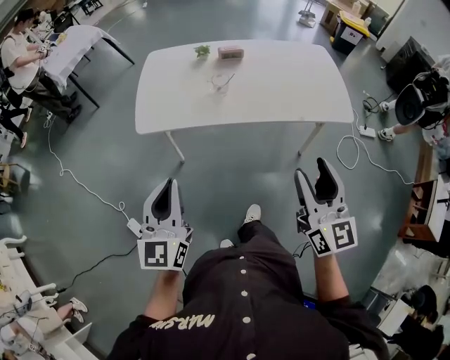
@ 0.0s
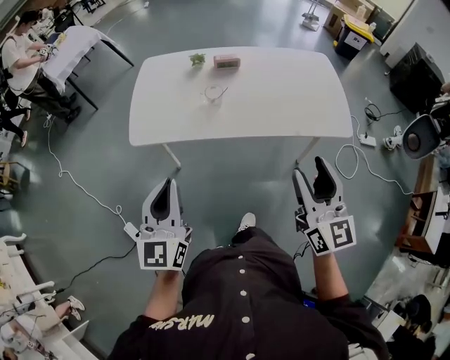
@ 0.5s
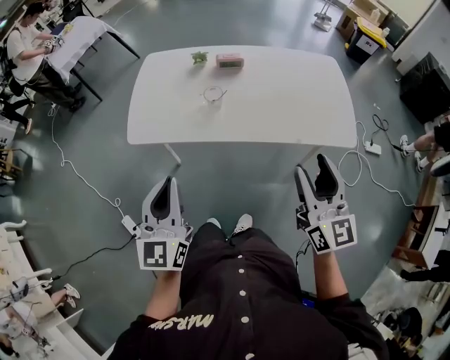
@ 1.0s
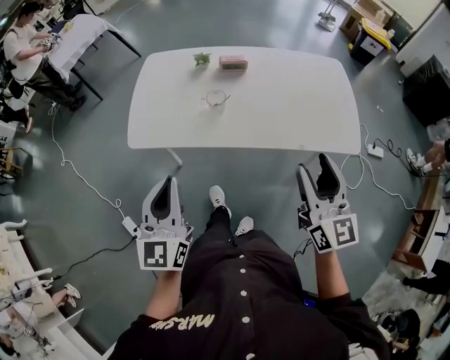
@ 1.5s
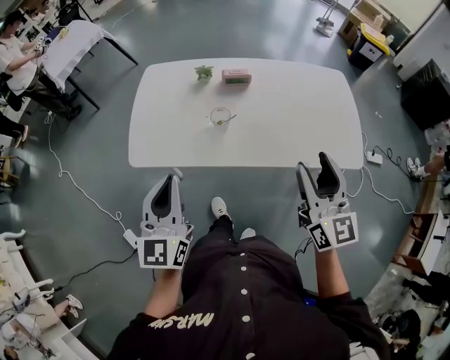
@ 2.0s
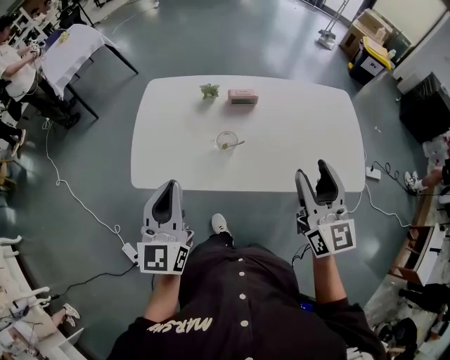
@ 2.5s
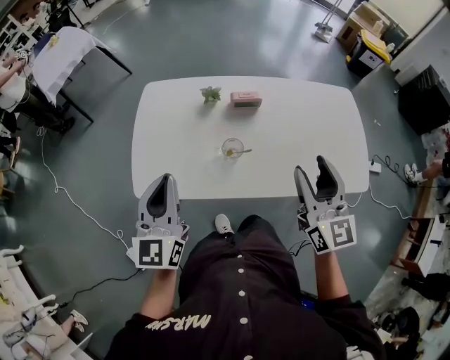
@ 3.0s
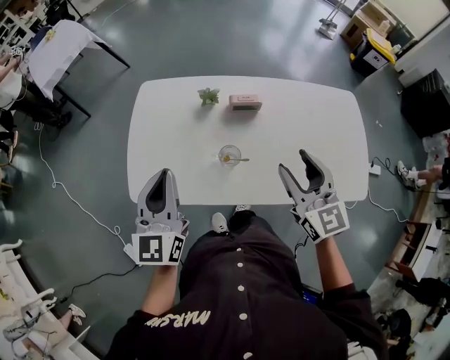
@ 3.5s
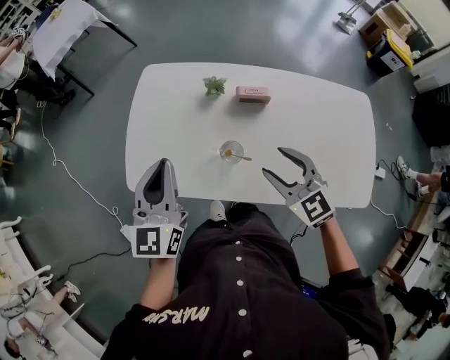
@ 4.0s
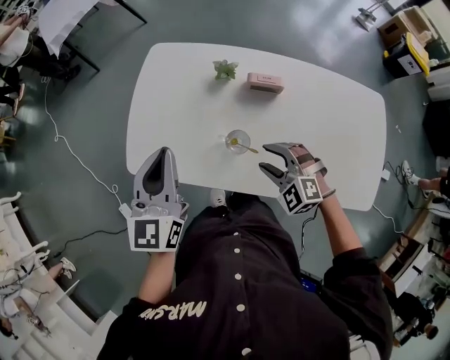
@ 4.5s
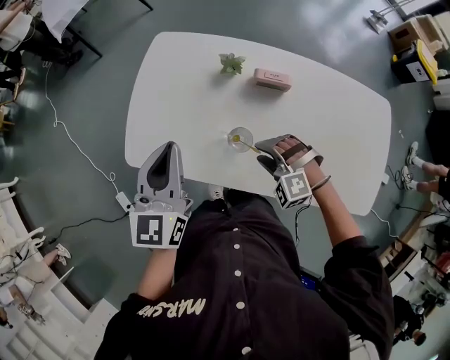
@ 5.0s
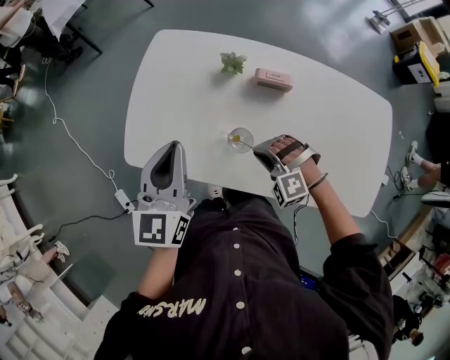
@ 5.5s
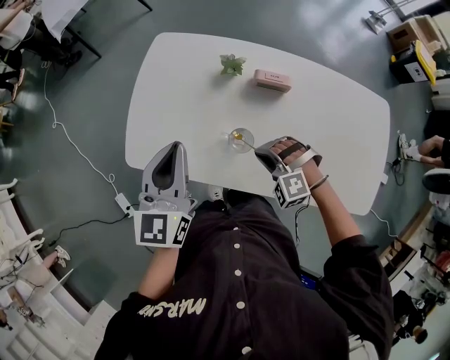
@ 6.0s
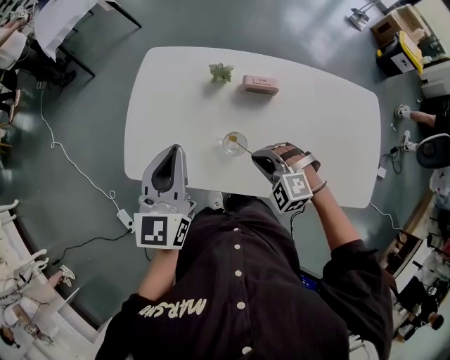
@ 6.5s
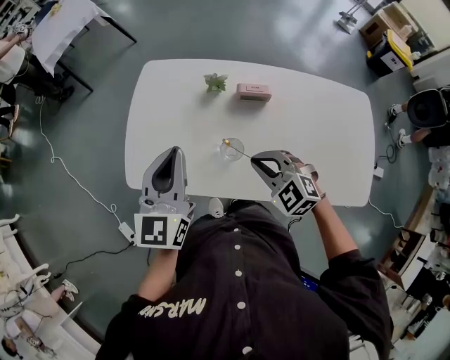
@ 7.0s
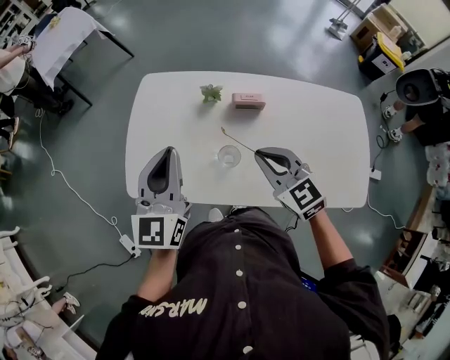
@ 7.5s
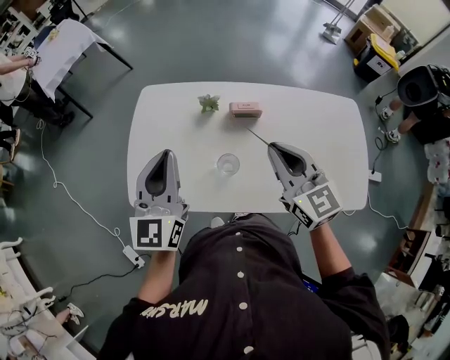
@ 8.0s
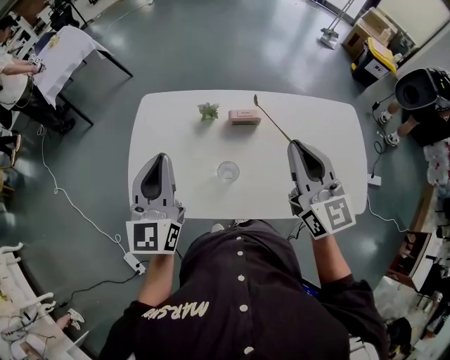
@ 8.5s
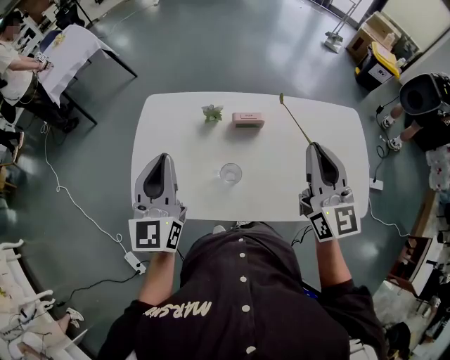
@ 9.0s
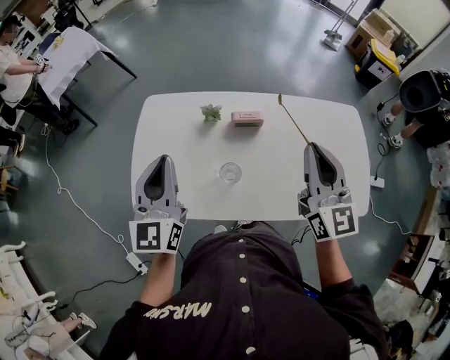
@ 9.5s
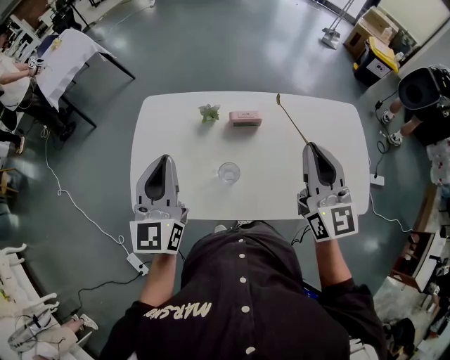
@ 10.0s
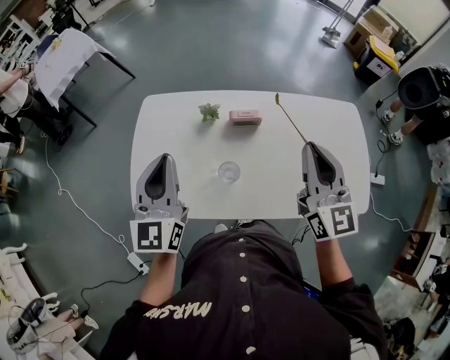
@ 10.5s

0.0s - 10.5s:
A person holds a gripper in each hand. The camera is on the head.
0.0s - 2.0s: Both grippers travel together forward, roughly 20 cm.
2.0s - 4.0s: The left gripper moves forward, approximately 25 cm. The right gripper shifts approximately 30 cm forward, downward and to the left, and changes its angle by about 40 degrees.
4.0s - 6.5s: The right gripper is displaced downward by roughly 10 cm, turns by some 50 degrees, and closes up.
6.5s - 8.5s: The right gripper shifts about 30 cm upward, and tilts its fingers approximately 50 degrees upward. Meanwhile the left gripper moves upward, about 5 cm.
8.5s - 10.5s: The grippers make only small movements.

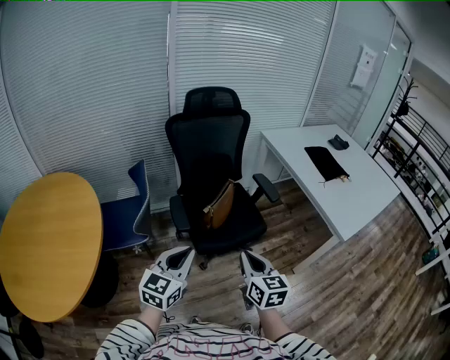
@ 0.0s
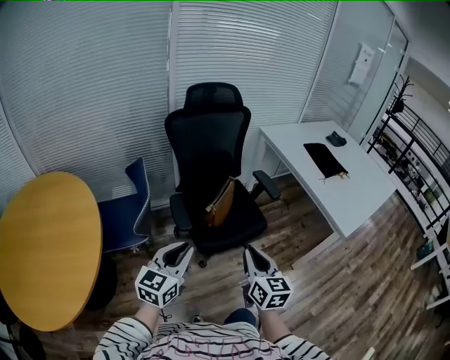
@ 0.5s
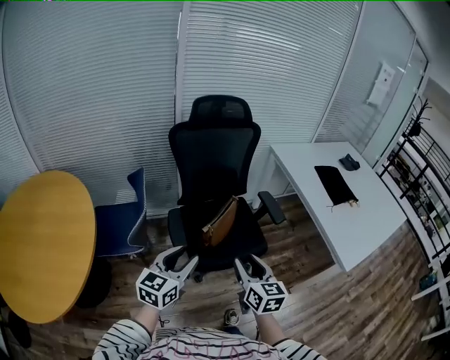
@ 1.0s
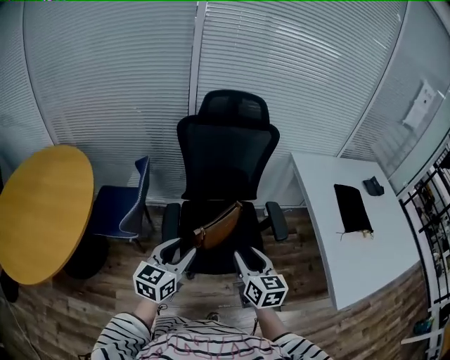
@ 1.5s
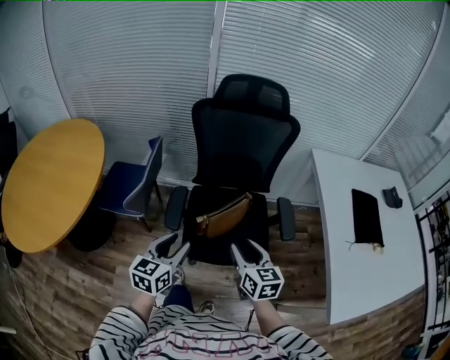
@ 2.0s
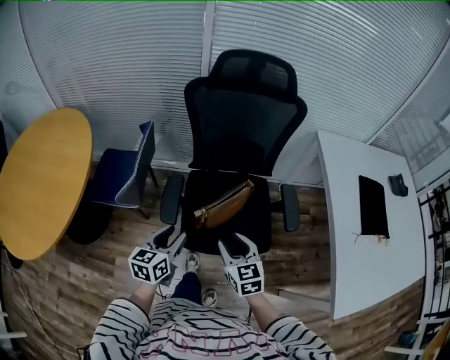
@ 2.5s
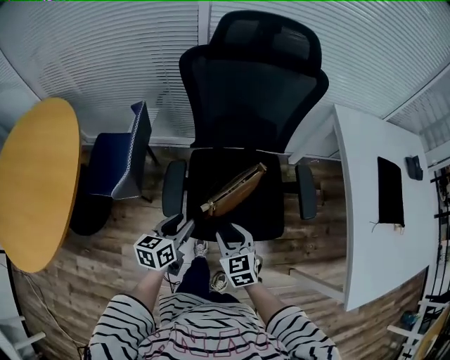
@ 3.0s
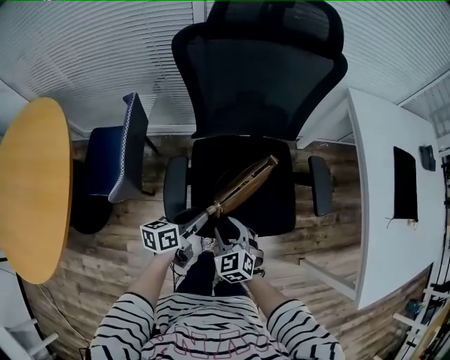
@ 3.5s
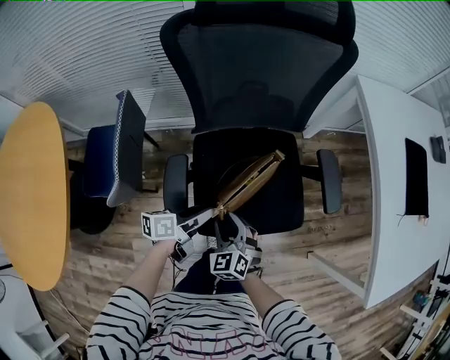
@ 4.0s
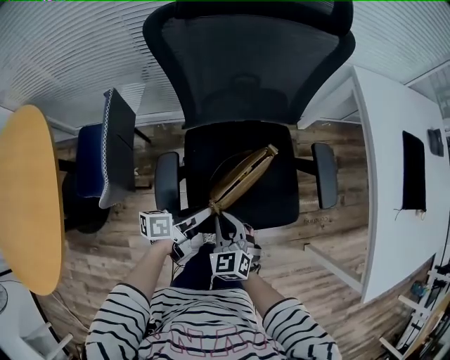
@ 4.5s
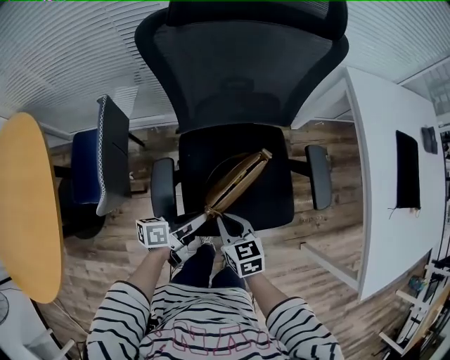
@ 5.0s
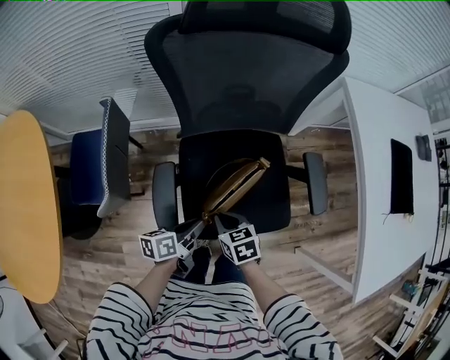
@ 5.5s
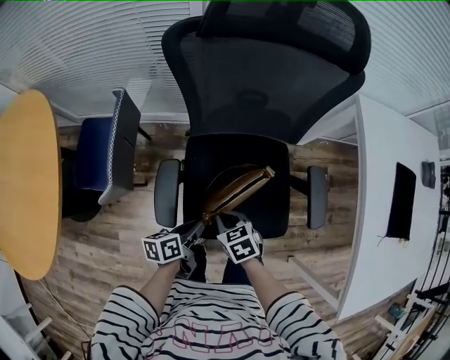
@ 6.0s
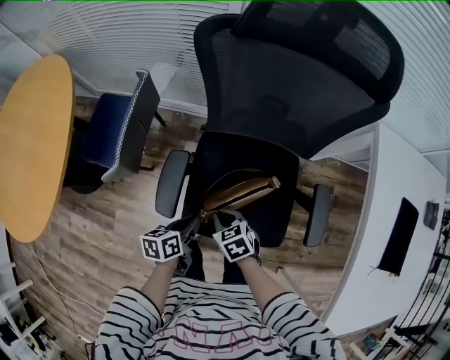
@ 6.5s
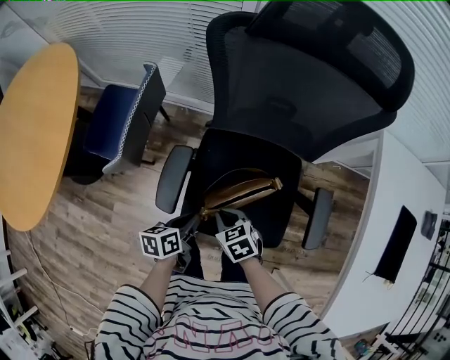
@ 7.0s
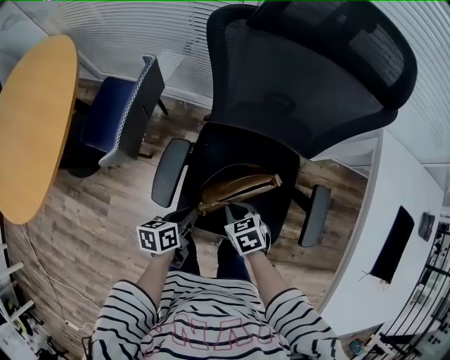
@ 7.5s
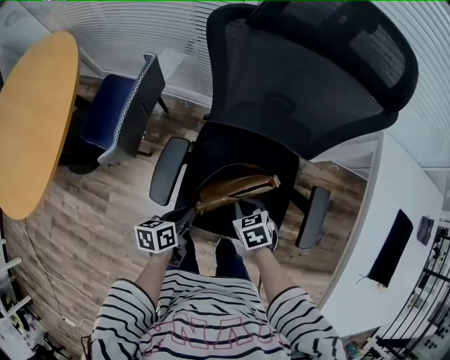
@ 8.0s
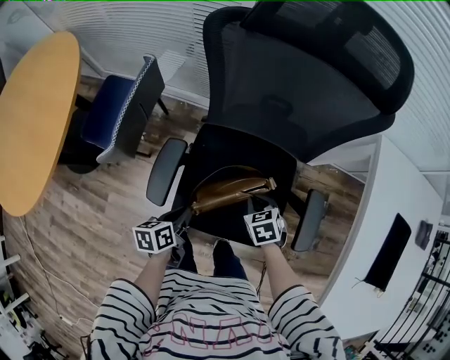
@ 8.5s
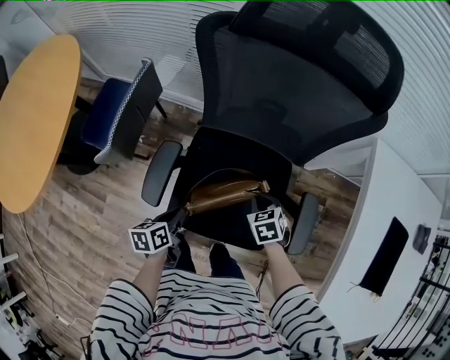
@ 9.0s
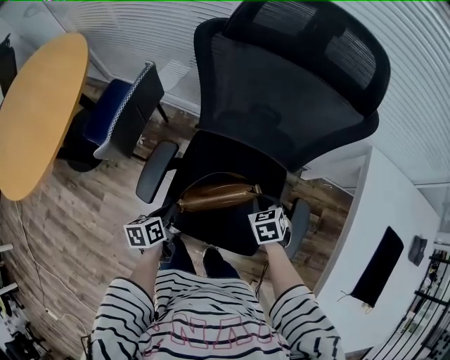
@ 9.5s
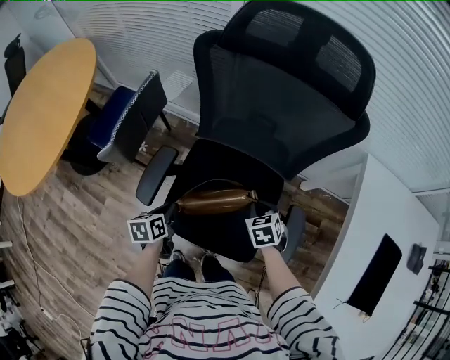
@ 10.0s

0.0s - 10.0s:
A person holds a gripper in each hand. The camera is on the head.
0.0s - 2.0s: The right gripper changes place by about 25 cm, swivels roughly 30 degrees, and opens up. Meanwhile the left gripper moves some 20 cm, rotates about 30 degrees, and opens.
2.0s - 4.0s: The right gripper heads downward, to the left and forward, covering roughly 30 cm, and turns by about 40 degrees. The left gripper heads downward and forward, covering some 30 cm, and swivels some 50 degrees.
4.0s - 6.0s: The left gripper closes up; the right gripper shifts by some 5 cm, changes its angle by approximately 40 degrees, and closes.
6.0s - 8.0s: The right gripper goes some 10 cm to the right.
8.0s - 10.0s: The right gripper moves to the right and forward, roughly 15 cm.

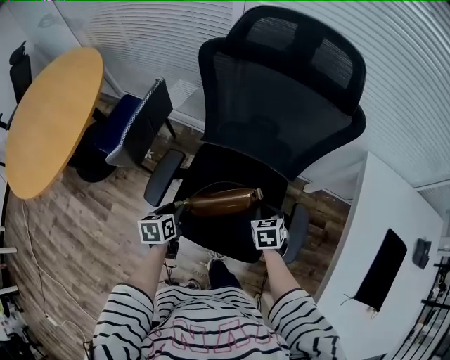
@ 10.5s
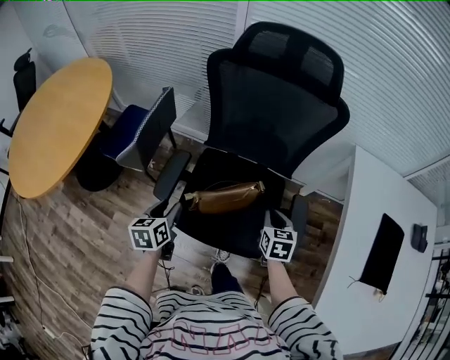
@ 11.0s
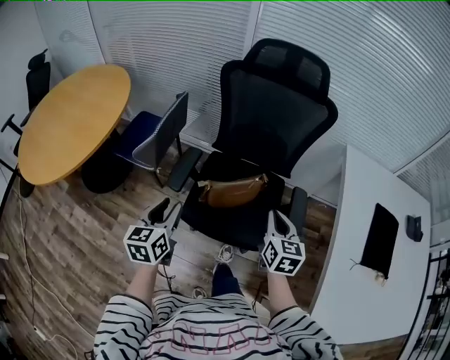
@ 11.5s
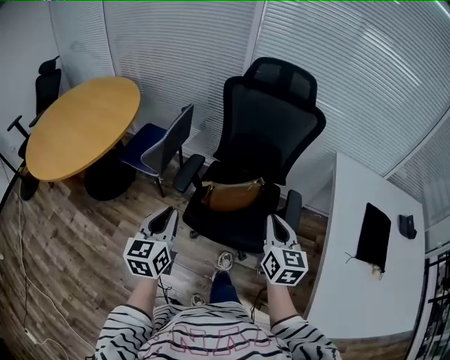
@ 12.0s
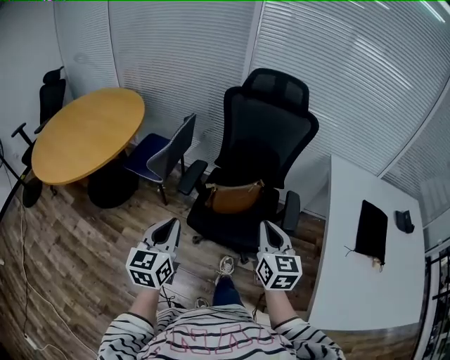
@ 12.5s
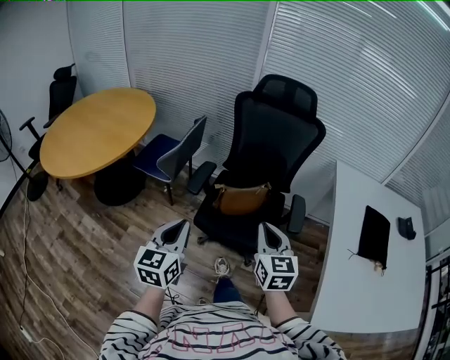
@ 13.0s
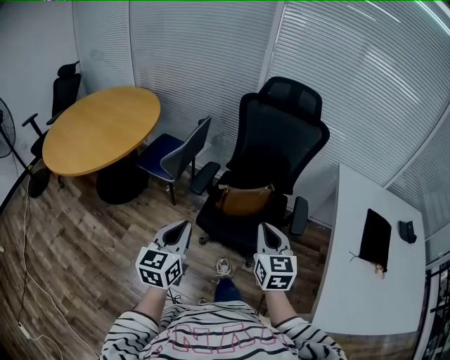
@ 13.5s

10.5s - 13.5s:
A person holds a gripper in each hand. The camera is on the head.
10.5s - 12.0s: Both grippers move upward and backward, roughly 40 cm. The right gripper tips its fingers upward by some 40 degrees, while the left gripper angles its fingers upward, by approximately 40 degrees, and closes up.
12.0s - 13.5s: The left gripper heads backward, covering some 10 cm. The right gripper shifts roughly 10 cm backward and to the left.

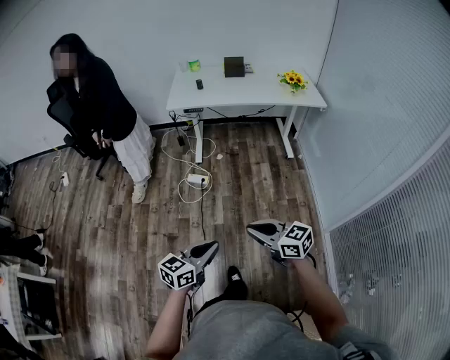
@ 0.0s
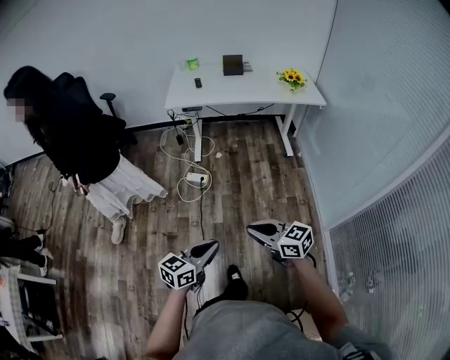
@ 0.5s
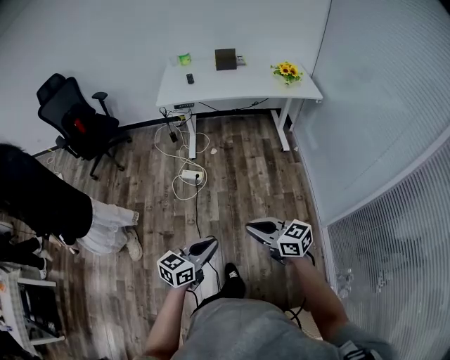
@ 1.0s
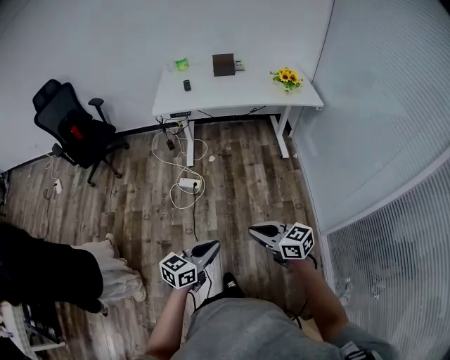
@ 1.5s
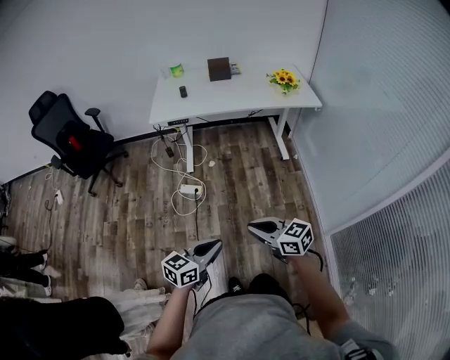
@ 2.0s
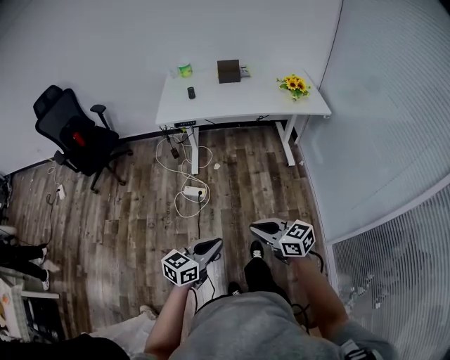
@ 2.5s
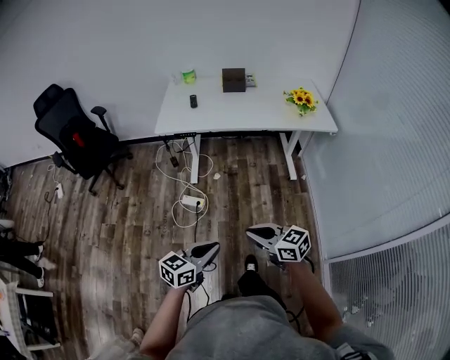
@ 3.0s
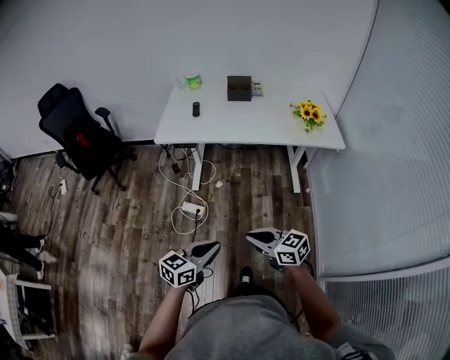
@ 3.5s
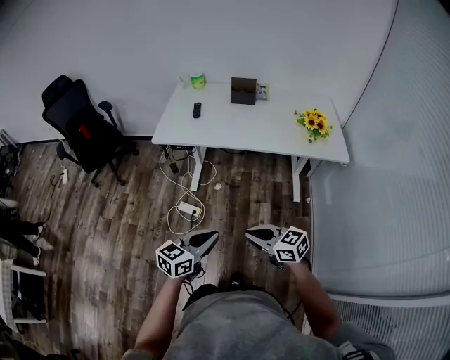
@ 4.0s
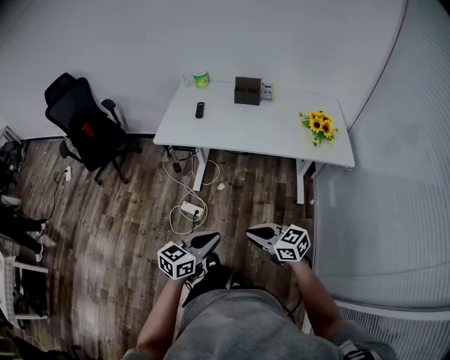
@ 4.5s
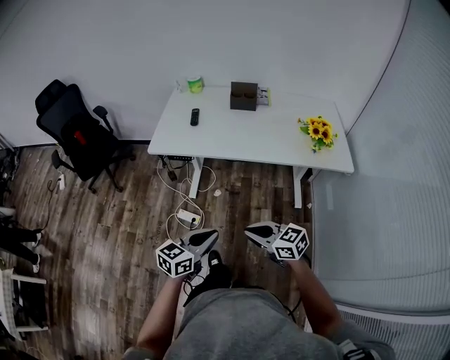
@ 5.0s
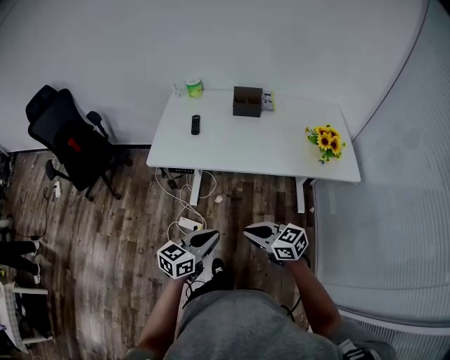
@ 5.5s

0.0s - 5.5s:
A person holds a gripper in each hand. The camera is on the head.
0.0s - 2.0s: The two grippers go approximately 15 cm forward and to the right.
2.0s - 3.5s: The two grippers go roughly 20 cm forward.
3.5s - 5.5s: The grippers both shift forward by approximately 25 cm.
